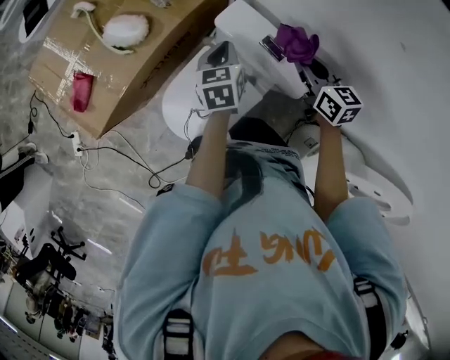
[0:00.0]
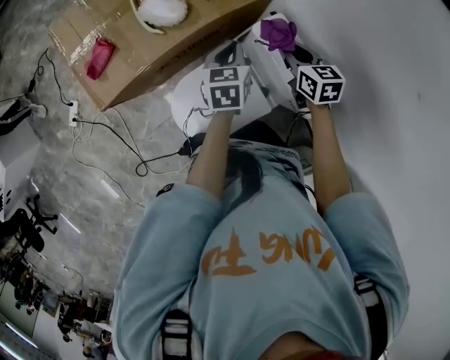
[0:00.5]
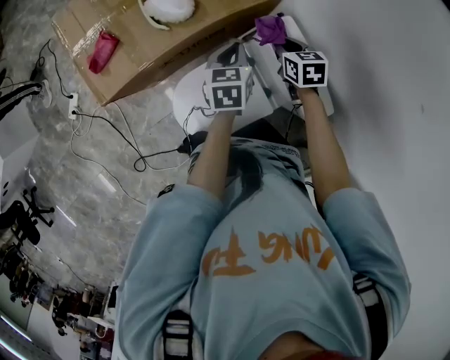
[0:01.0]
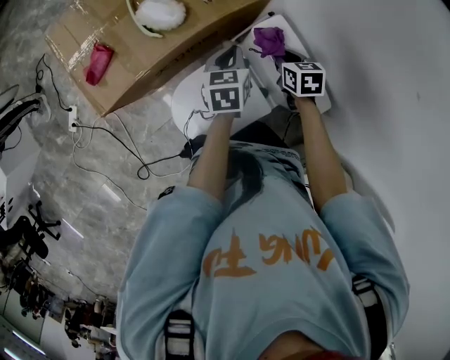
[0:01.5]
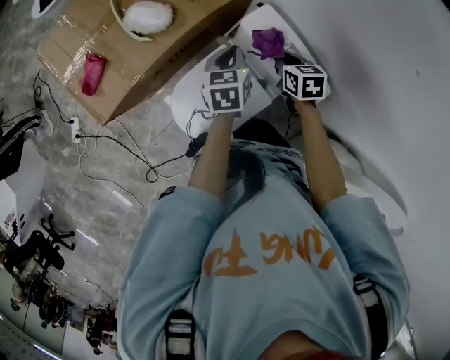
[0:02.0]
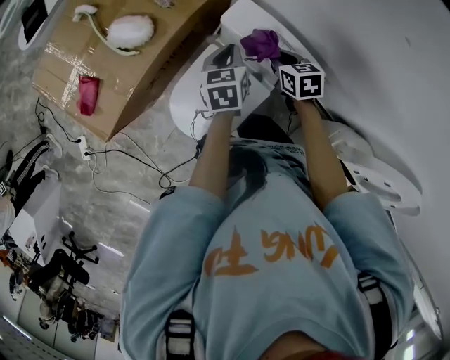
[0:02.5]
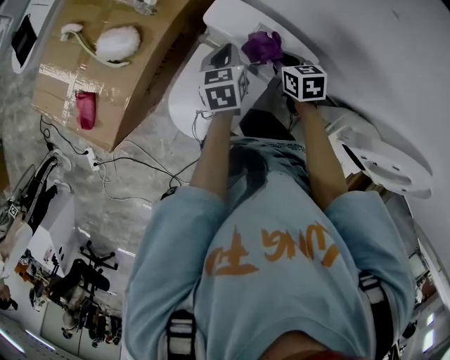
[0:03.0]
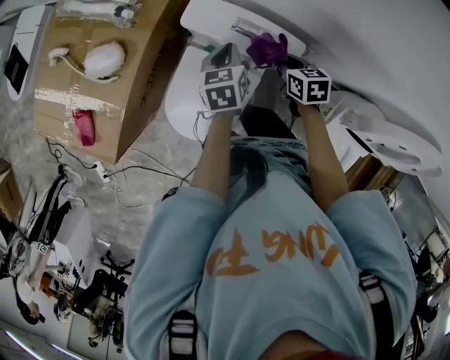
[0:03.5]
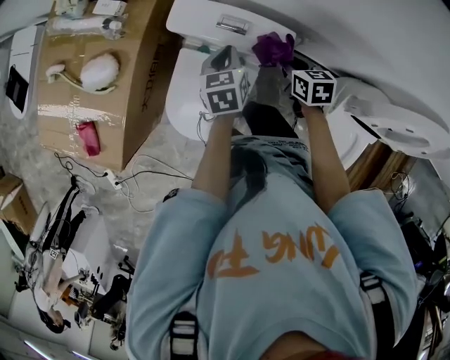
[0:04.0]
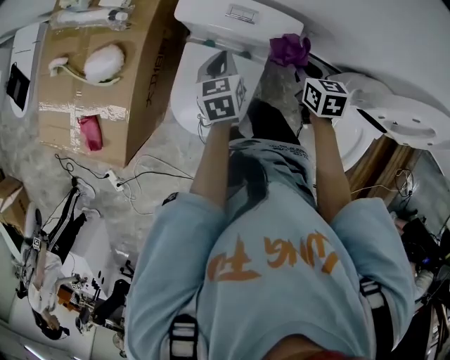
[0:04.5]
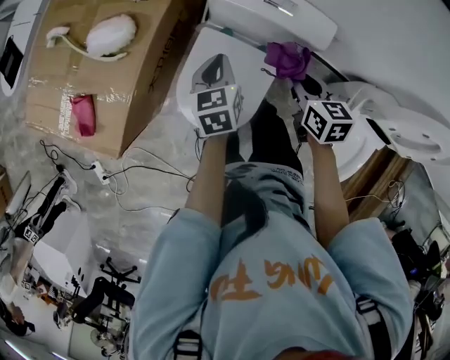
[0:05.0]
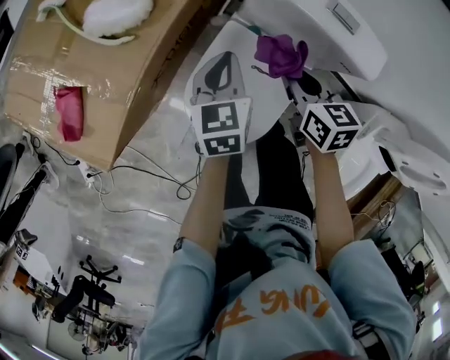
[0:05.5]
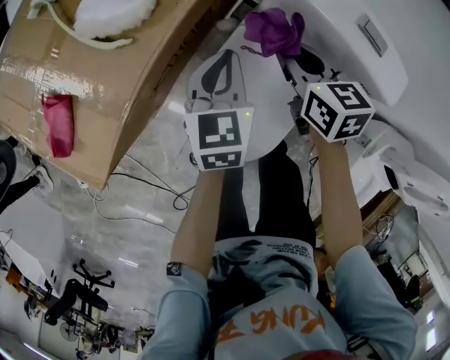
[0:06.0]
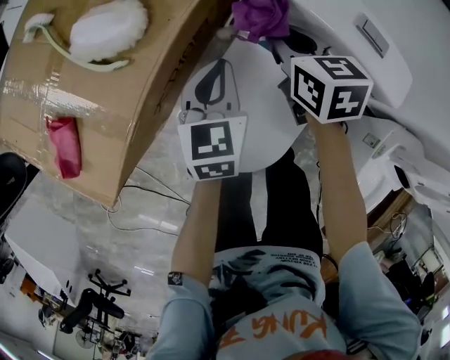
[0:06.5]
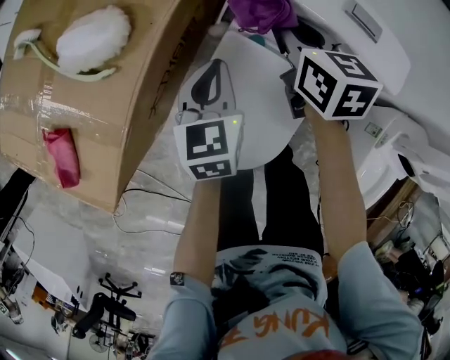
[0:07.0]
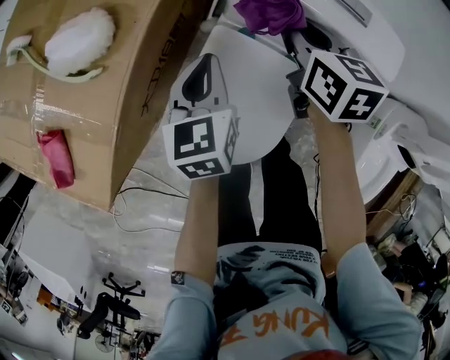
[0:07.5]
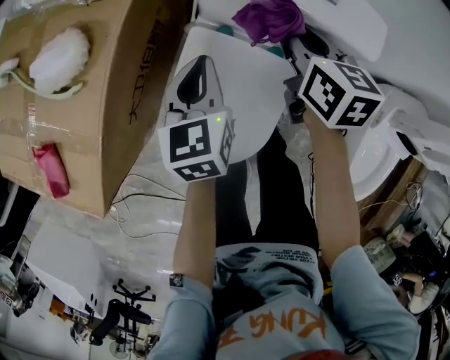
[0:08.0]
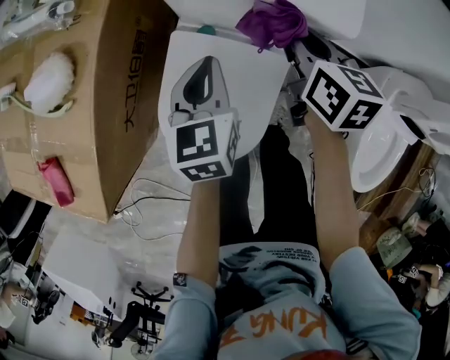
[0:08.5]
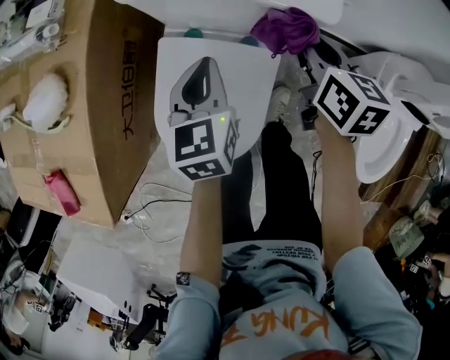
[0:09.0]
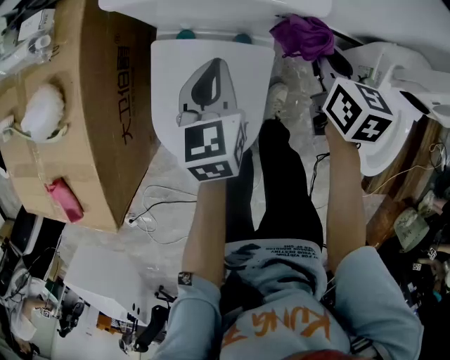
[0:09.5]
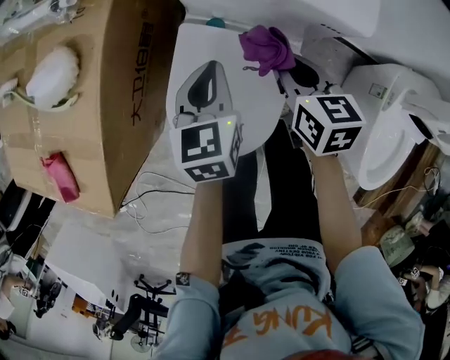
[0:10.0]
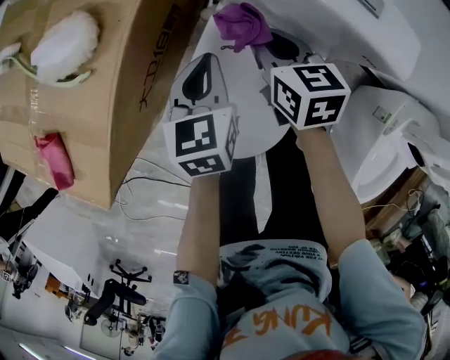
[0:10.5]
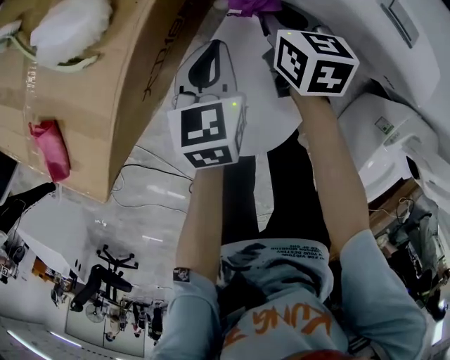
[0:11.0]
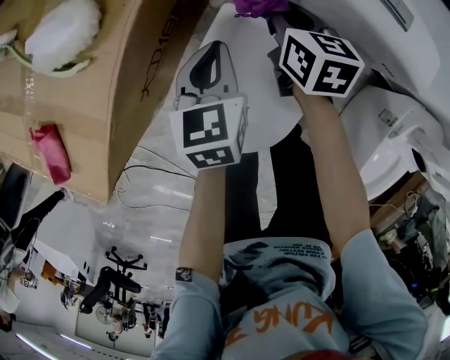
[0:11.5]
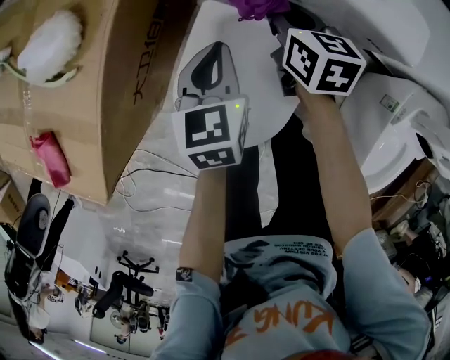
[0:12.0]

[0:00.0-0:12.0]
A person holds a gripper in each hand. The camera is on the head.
0.0 to 2.0 s: The left gripper heads to the left, covering some 5 cm; the right gripper moves downward and to the left, roughly 15 cm, and rotates roughly 20 degrees.
2.0 to 4.0 s: The right gripper moves to the right and backward, roughly 20 cm, and swivels about 30 degrees; the left gripper moves to the right, about 15 cm, and swivels approximately 30 degrees.
4.0 to 6.0 s: The right gripper heads to the left, covering approximately 30 cm, and changes its angle by approximately 20 degrees. The left gripper heads to the left and downward, covering roughly 30 cm.
6.0 to 8.0 s: The left gripper is displaced to the right by roughly 5 cm. Meanwhile the right gripper goes some 15 cm to the right, and turns by approximately 20 degrees.
8.0 to 10.0 s: The right gripper shifts approximately 10 cm backward and downward, and moves roughly 20 cm to the right and comes back. The left gripper moves roughly 15 cm to the right and comes back.
10.0 to 12.0 s: The right gripper moves forward and downward, about 10 cm.

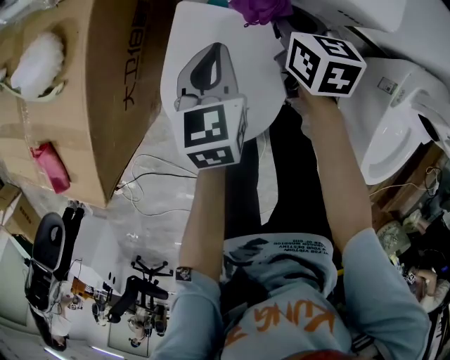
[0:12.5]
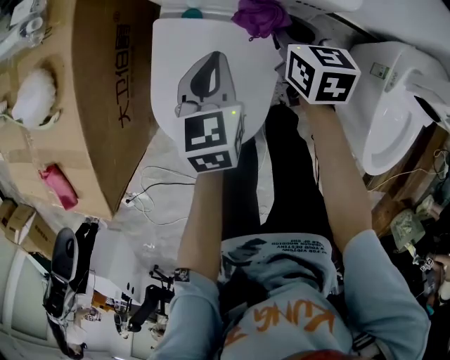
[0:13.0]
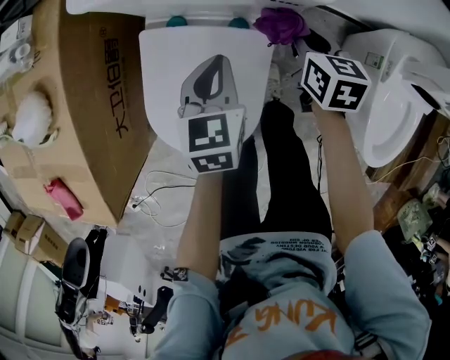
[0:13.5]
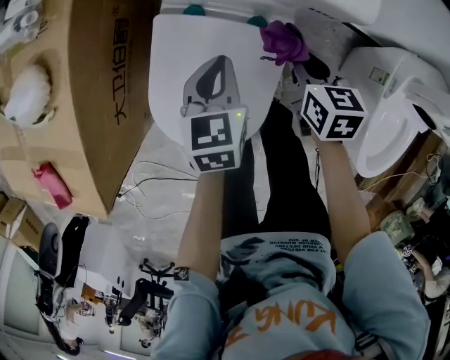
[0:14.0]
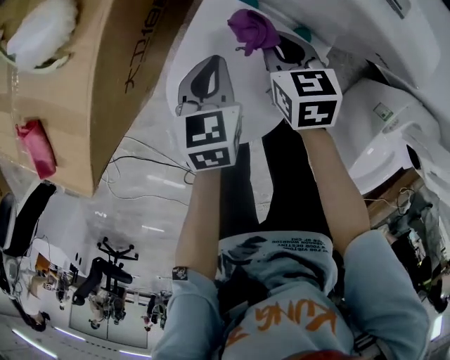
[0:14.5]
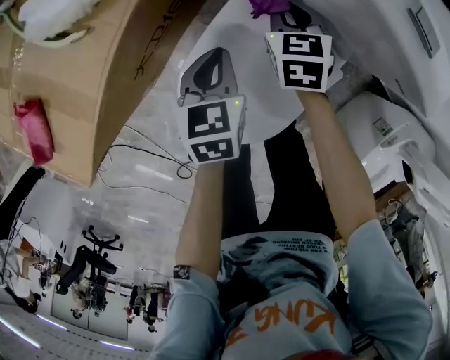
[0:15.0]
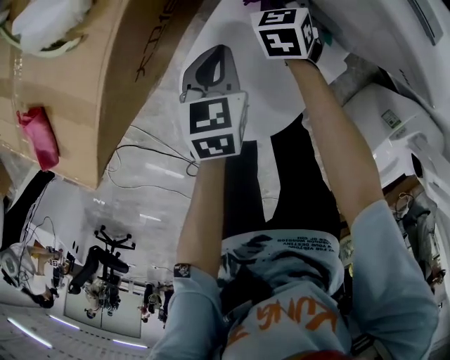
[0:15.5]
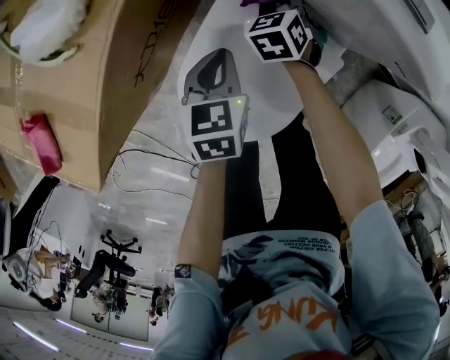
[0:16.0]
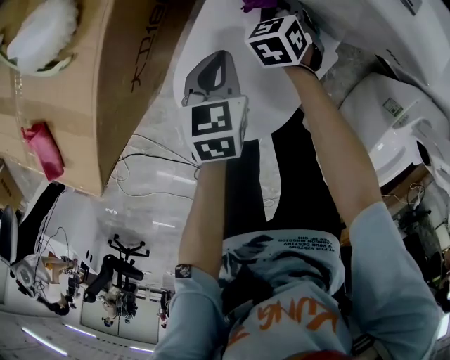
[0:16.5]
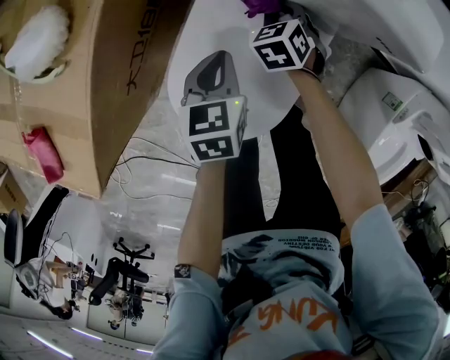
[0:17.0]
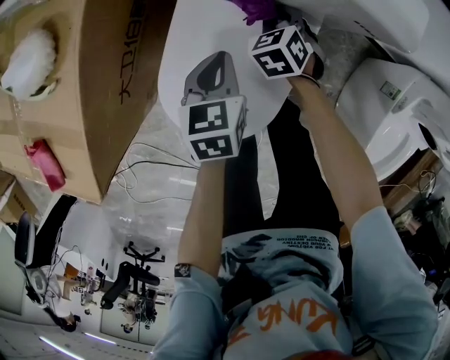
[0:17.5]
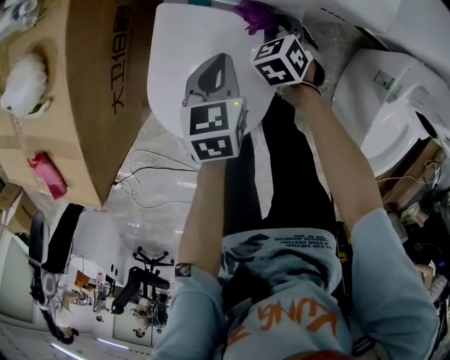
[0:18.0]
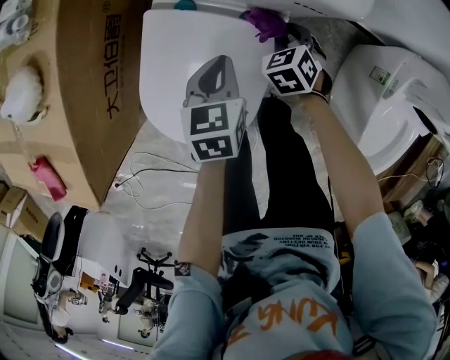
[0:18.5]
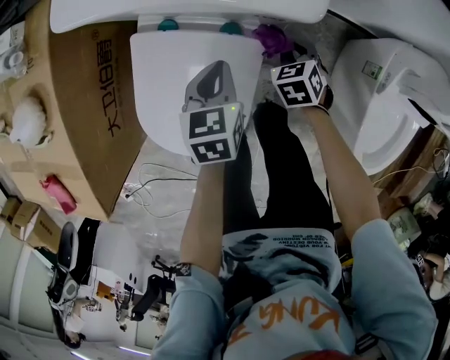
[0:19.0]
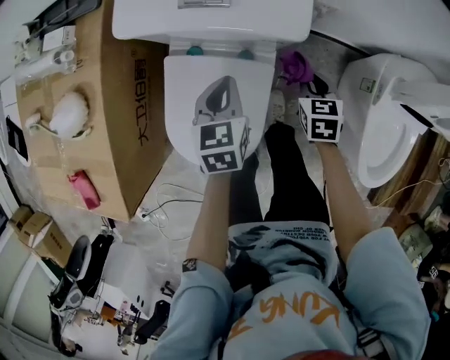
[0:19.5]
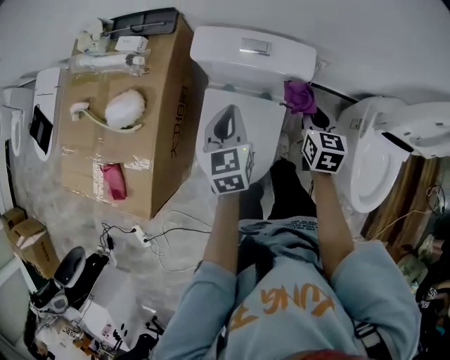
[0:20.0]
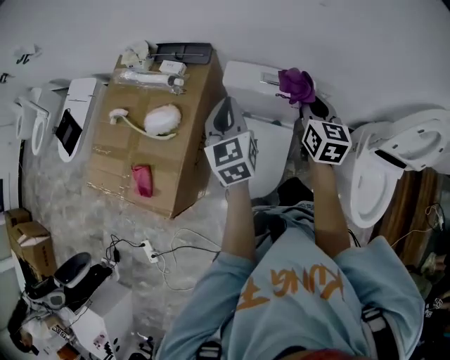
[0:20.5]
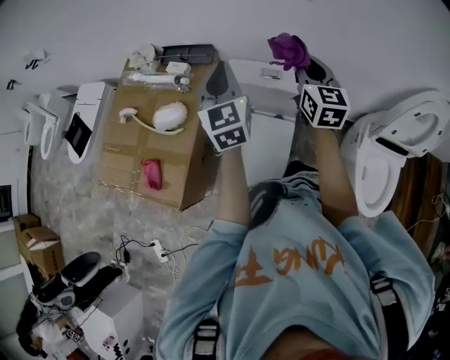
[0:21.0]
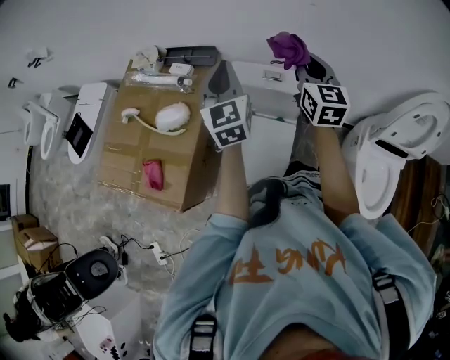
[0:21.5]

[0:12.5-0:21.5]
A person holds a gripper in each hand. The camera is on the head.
12.5 to 14.5 s: The right gripper changes place by about 10 cm, and changes its angle by about 20 degrees. The left gripper moves about 10 cm.
14.5 to 17.0 s: The right gripper is displaced downward and forward by about 10 cm, and turns by about 30 degrees.
17.0 to 19.5 s: The right gripper moves to the right and upward, some 30 cm, and rotates some 40 degrees. The left gripper shifts about 15 cm to the right and upward.
19.5 to 21.5 s: Both grippers travel together upward, roughly 50 cm. The right gripper tips its fingers upward by some 50 degrees, while the left gripper angles its fingers upward, by about 40 degrees.

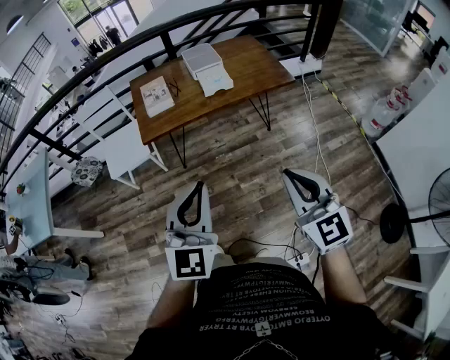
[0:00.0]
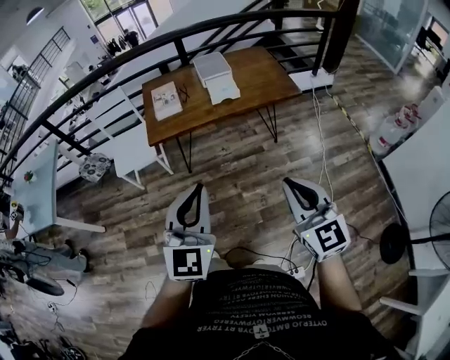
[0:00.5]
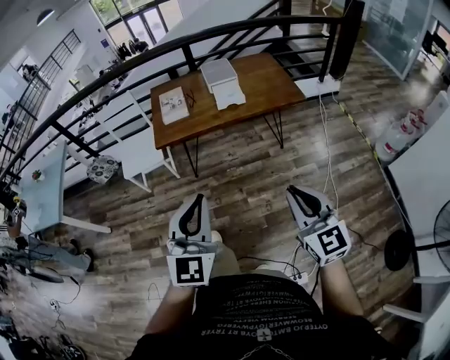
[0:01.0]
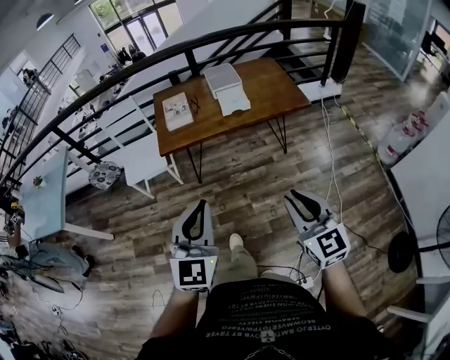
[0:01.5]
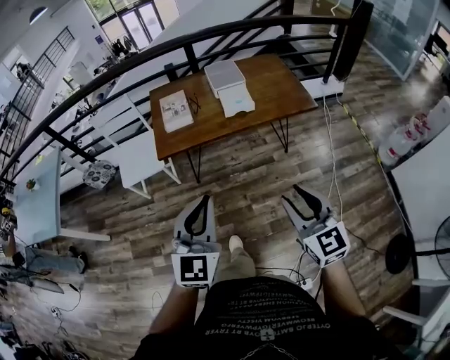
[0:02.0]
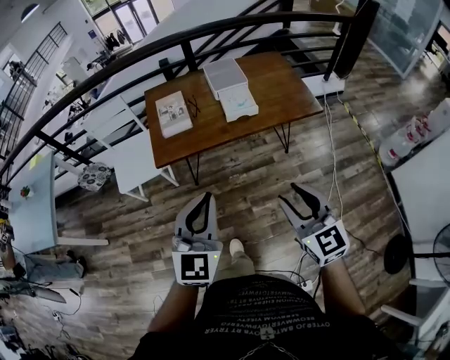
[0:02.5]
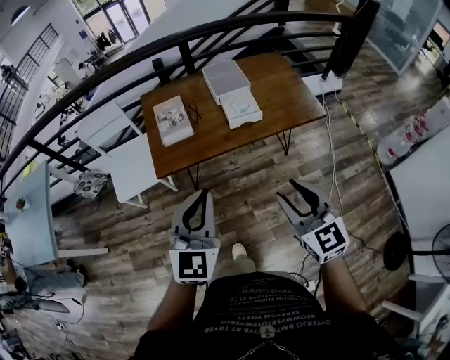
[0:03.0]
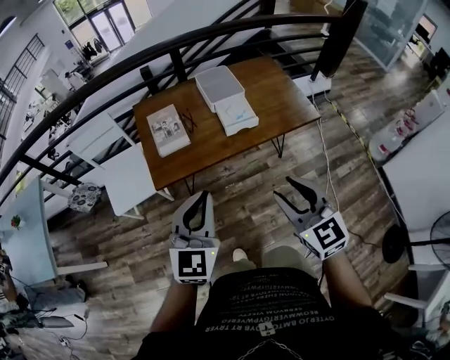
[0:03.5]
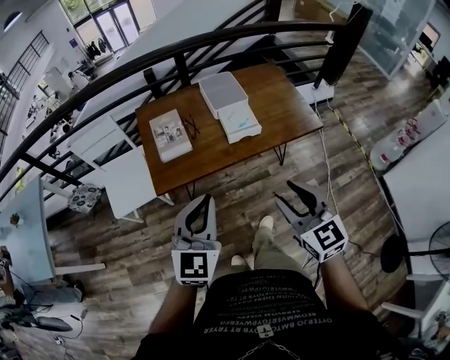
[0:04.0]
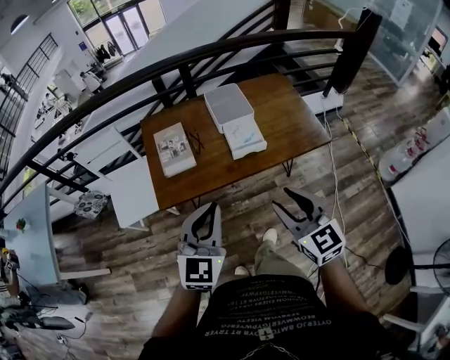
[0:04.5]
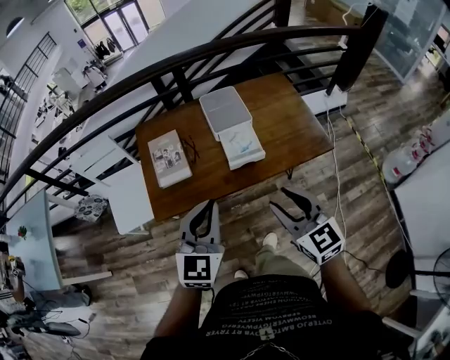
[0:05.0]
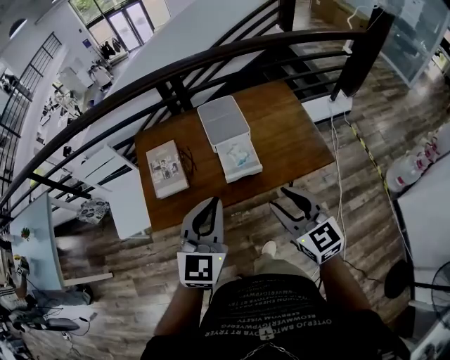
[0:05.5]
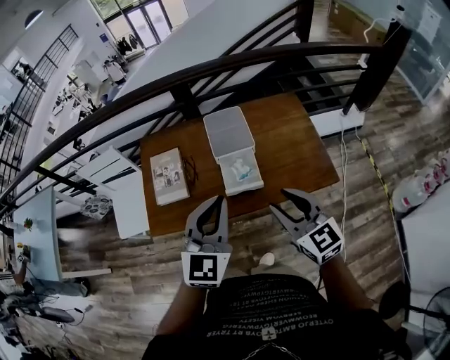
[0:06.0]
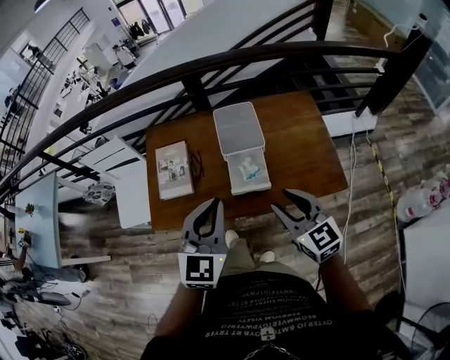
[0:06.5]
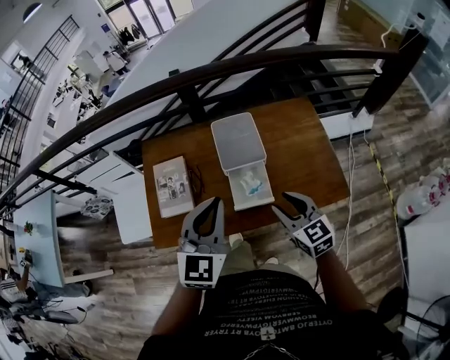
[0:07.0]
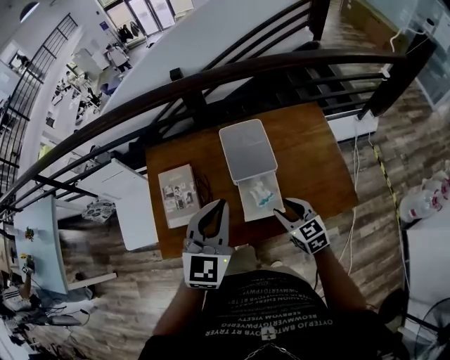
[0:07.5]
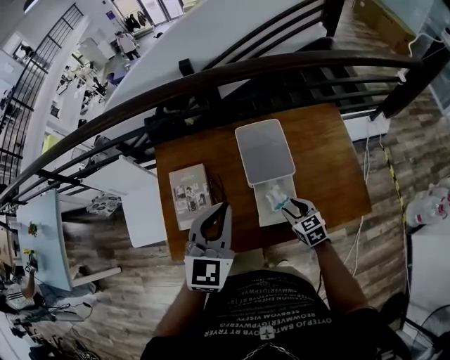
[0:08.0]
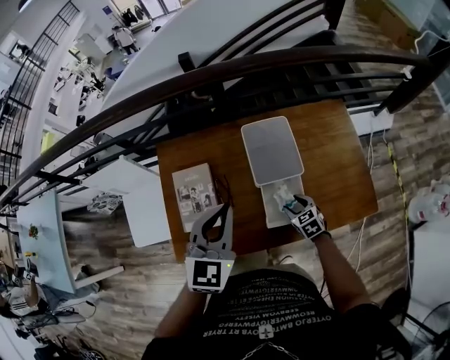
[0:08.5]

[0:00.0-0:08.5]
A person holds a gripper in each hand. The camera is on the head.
0.0 to 2.0 s: The two grippers go some 10 cm forward. The right gripper opens its fingers.
2.0 to 4.0 s: The grippers both shift forward by approximately 25 cm.
4.0 to 6.5 s: The grippers both shift forward and to the right by roughly 35 cm.
6.5 to 8.5 s: The right gripper heads downward and forward, covering approximately 35 cm, and tips its fingers downward by approximately 30 degrees; the left gripper is displaced forward and to the left by some 25 cm.
